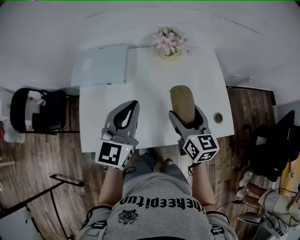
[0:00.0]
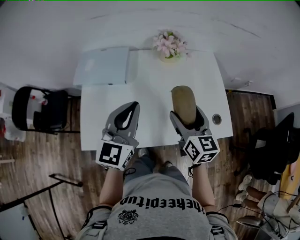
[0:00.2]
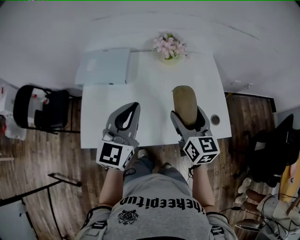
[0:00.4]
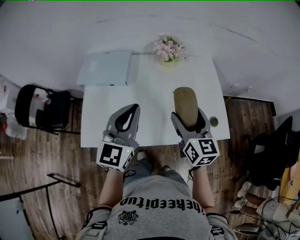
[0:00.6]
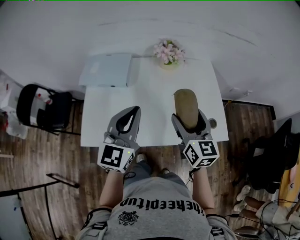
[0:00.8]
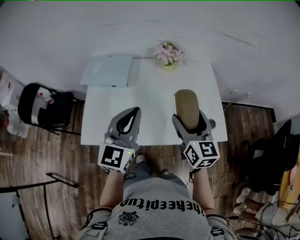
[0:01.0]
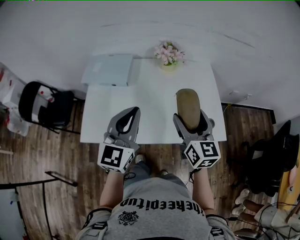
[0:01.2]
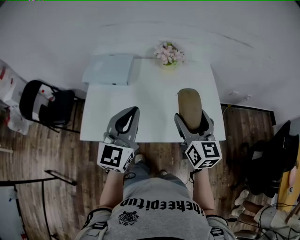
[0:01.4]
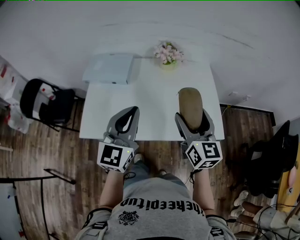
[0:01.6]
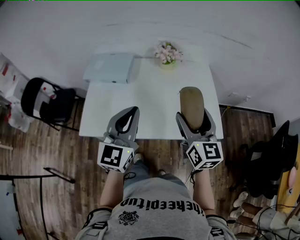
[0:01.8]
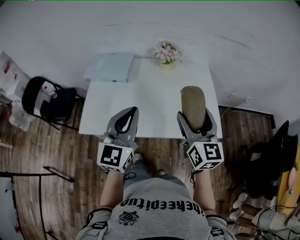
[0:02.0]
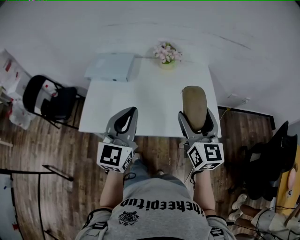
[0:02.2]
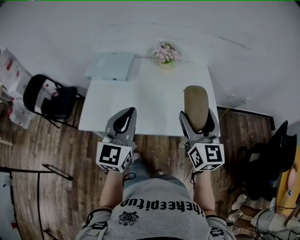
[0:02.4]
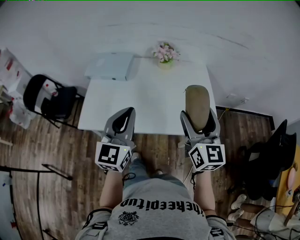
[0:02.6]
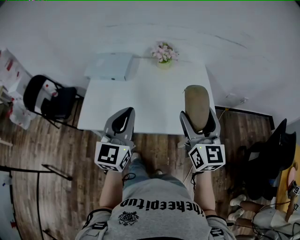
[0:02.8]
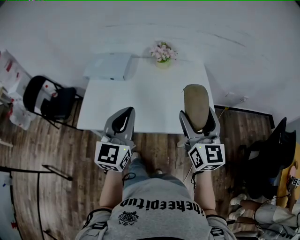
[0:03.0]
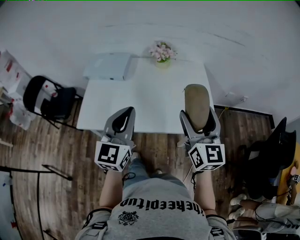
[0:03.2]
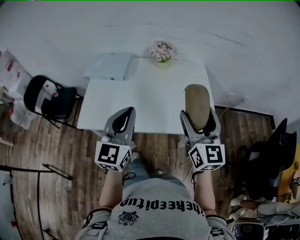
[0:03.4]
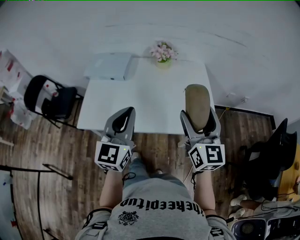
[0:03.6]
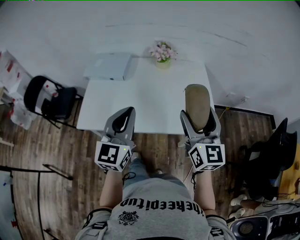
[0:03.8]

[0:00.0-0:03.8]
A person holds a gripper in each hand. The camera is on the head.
0:00.0 to 0:01.2: The left gripper travels backward by some 10 cm; the right gripper goes approximately 10 cm upward and backward.
0:01.2 to 0:02.6: The right gripper travels backward, to the right and upward by about 10 cm; the left gripper travels backward by roughly 10 cm.
0:02.6 to 0:03.8: The grippers stay close to where they were, moving slightly.

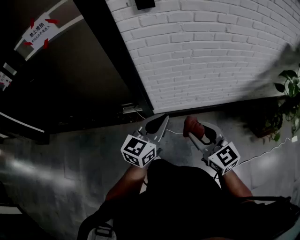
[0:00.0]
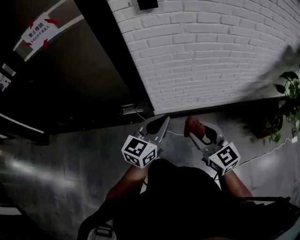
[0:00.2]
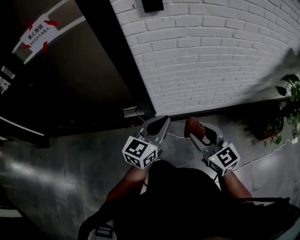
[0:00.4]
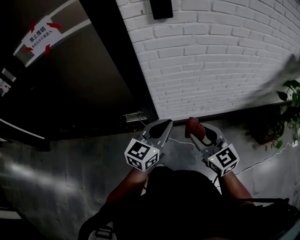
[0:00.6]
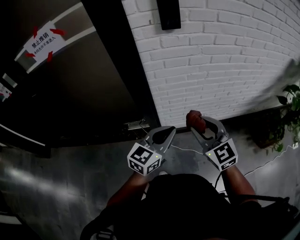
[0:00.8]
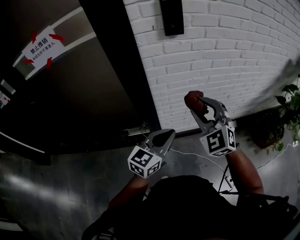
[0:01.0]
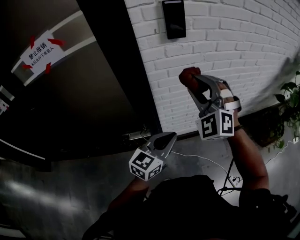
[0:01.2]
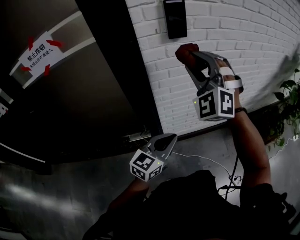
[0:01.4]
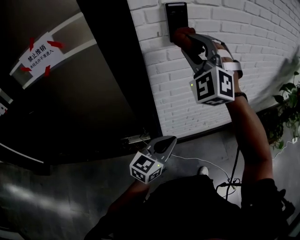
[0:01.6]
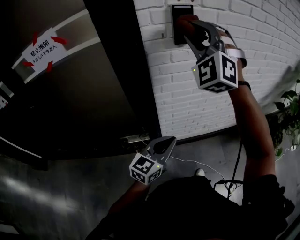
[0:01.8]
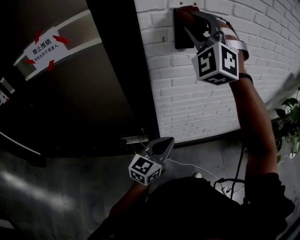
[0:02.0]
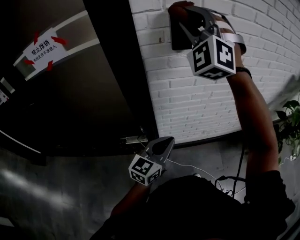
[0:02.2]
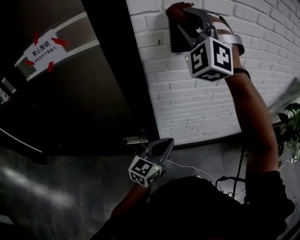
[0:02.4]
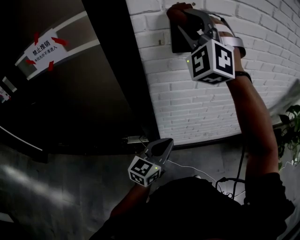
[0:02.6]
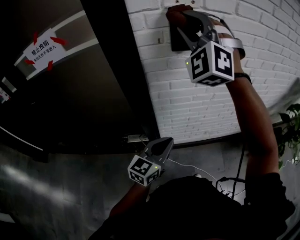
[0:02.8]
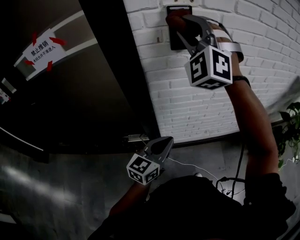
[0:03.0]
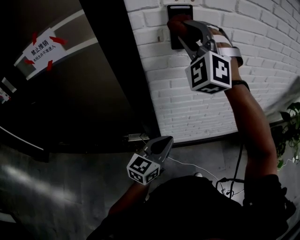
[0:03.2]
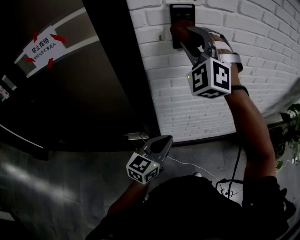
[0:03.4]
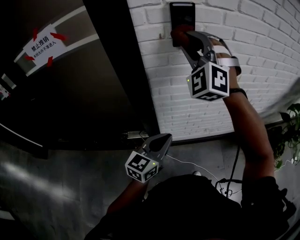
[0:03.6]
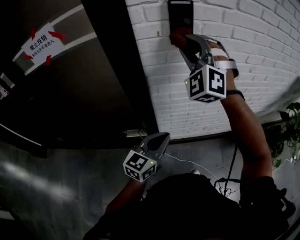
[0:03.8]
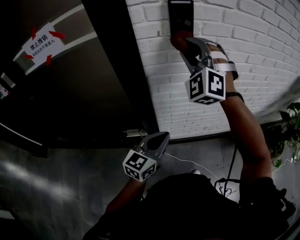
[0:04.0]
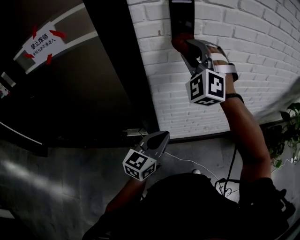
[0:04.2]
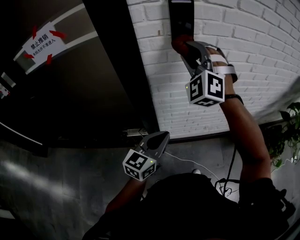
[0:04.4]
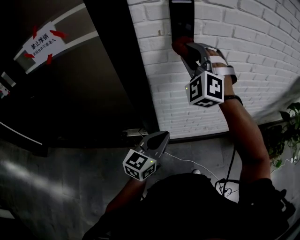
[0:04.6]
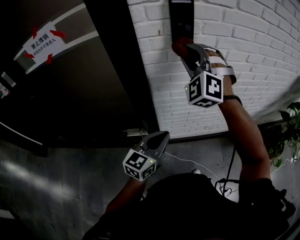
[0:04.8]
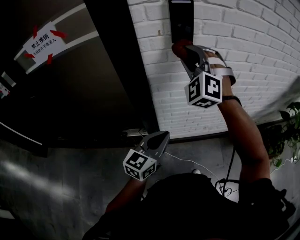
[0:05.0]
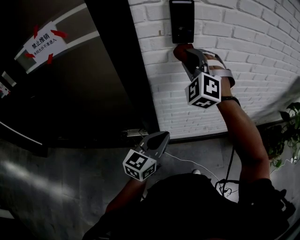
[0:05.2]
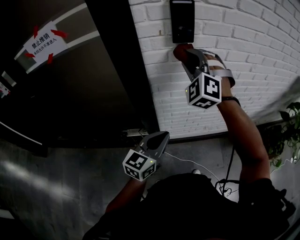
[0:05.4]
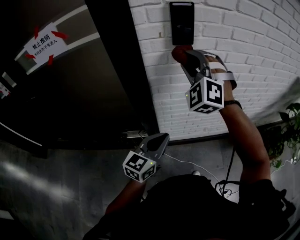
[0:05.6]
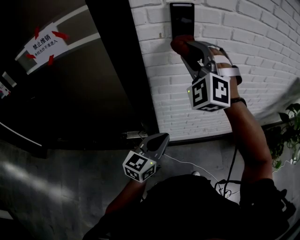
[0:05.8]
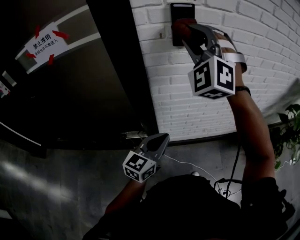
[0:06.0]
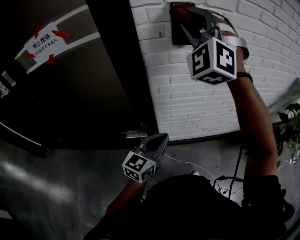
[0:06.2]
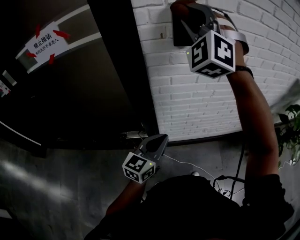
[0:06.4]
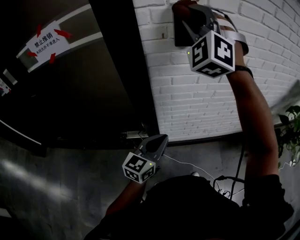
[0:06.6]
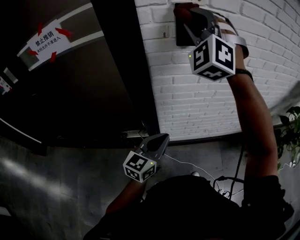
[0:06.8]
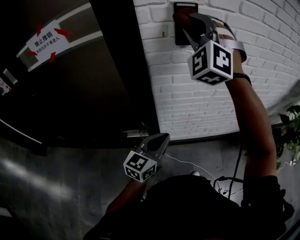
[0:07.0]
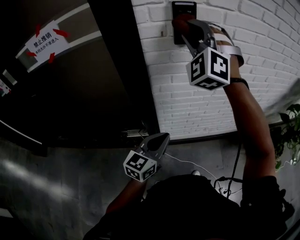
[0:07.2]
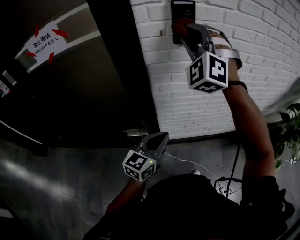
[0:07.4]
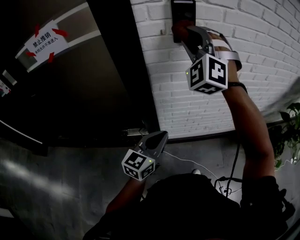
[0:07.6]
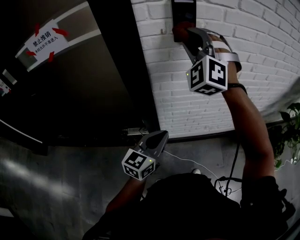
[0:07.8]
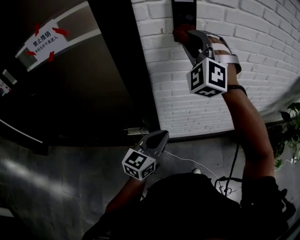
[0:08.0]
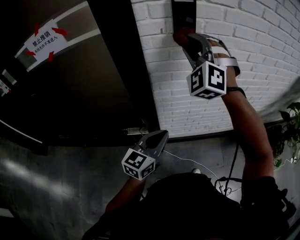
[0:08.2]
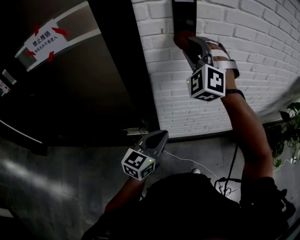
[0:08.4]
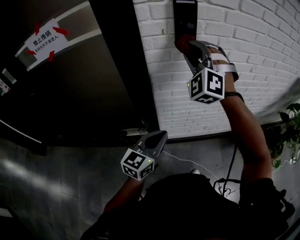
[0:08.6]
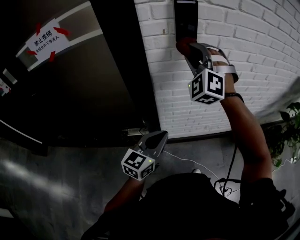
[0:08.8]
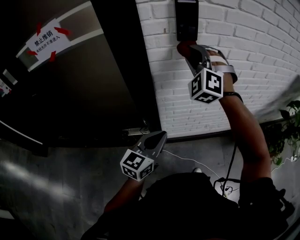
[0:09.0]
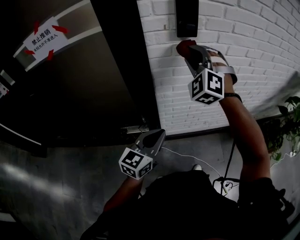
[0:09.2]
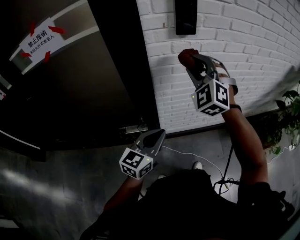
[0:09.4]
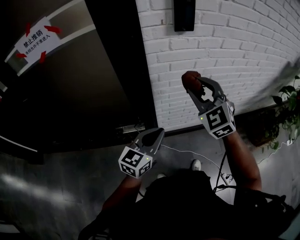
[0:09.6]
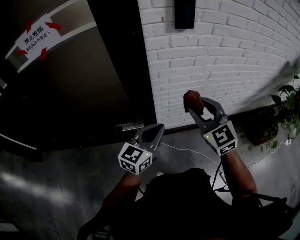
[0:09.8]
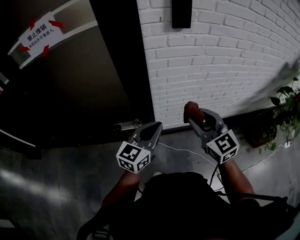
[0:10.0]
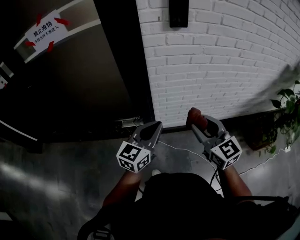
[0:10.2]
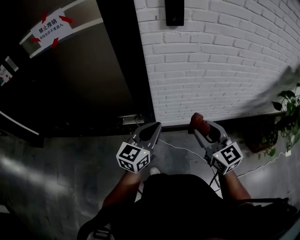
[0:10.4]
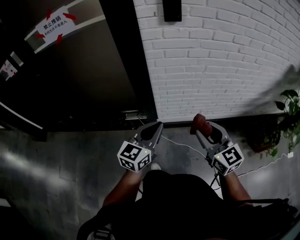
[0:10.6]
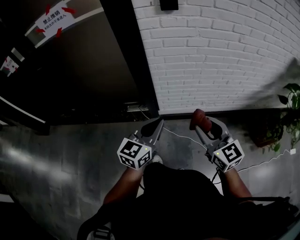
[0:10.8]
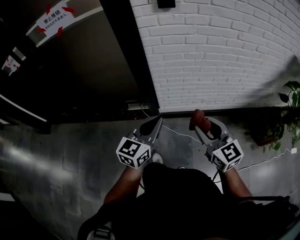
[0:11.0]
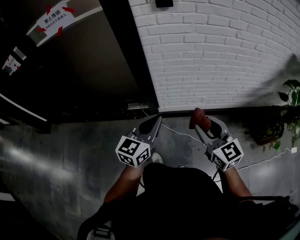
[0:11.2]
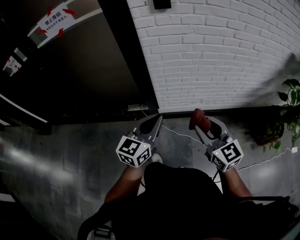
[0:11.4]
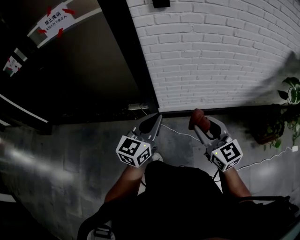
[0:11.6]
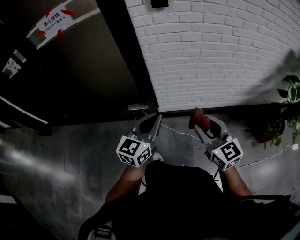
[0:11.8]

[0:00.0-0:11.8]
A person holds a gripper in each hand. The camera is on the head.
0:00.0 to 0:01.4: The right gripper moves forward, upward and to the left, approximately 40 cm, and rolls counterclockwise, seen from behind, by approximately 70 degrees. Meanwhile the left gripper is displaced to the left and forward by some 15 cm.
0:01.4 to 0:03.0: The left gripper goes approximately 5 cm forward; the right gripper shifts about 15 cm forward and upward.
0:03.0 to 0:04.4: The right gripper goes some 10 cm downward.
0:04.4 to 0:06.0: The right gripper goes roughly 10 cm upward.
0:06.0 to 0:07.4: The right gripper moves approximately 5 cm upward and comes back.
0:07.4 to 0:08.8: The right gripper is displaced downward by about 10 cm.
0:08.8 to 0:10.4: The left gripper goes about 10 cm backward. Meanwhile the right gripper heads backward, downward and to the right, covering about 35 cm, and twists some 70 degrees clockwise, seen from behind.
0:10.4 to 0:11.8: Both grippers travel together backward, some 10 cm.

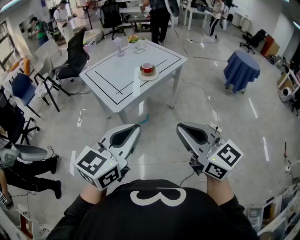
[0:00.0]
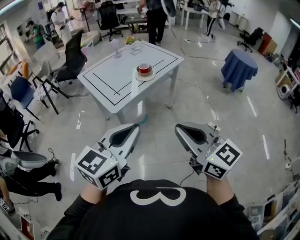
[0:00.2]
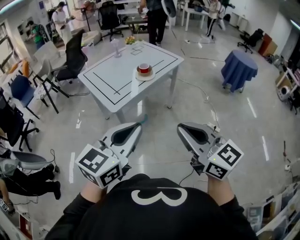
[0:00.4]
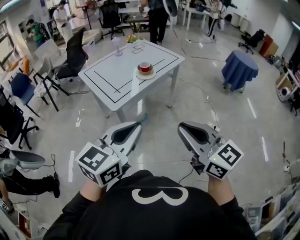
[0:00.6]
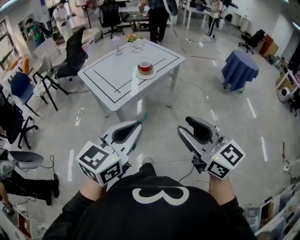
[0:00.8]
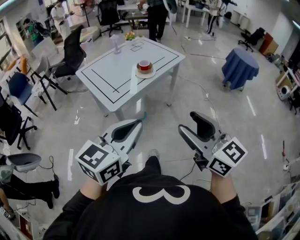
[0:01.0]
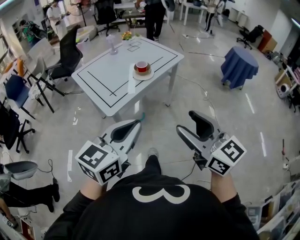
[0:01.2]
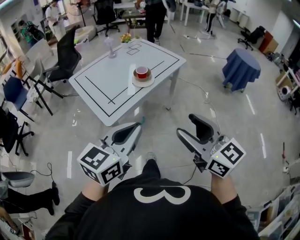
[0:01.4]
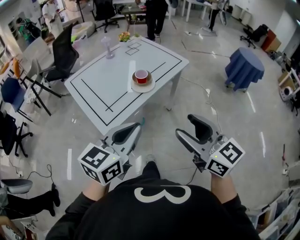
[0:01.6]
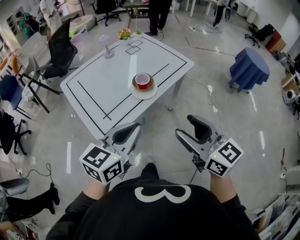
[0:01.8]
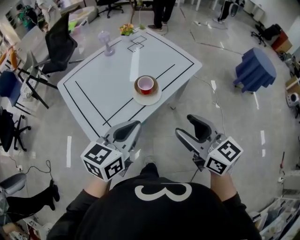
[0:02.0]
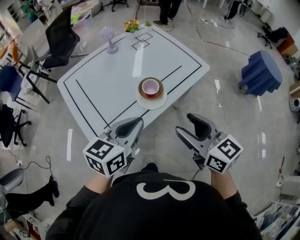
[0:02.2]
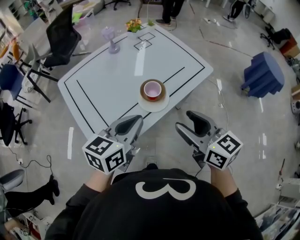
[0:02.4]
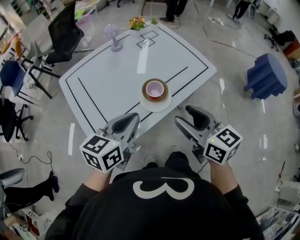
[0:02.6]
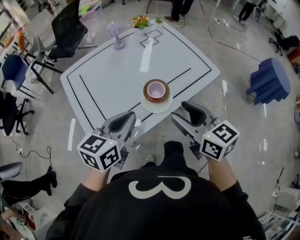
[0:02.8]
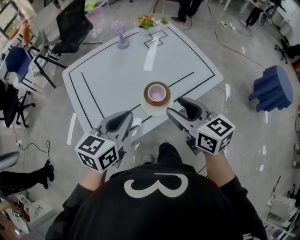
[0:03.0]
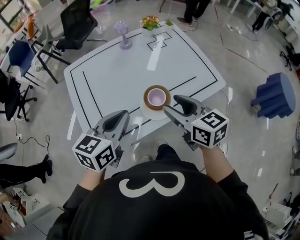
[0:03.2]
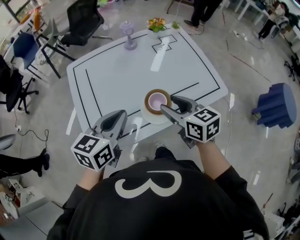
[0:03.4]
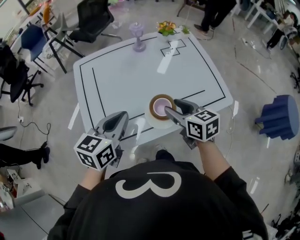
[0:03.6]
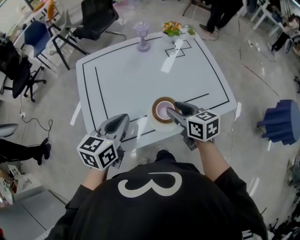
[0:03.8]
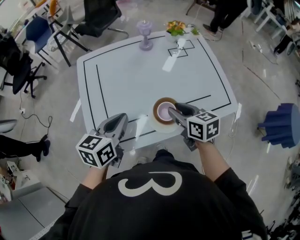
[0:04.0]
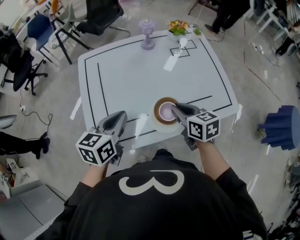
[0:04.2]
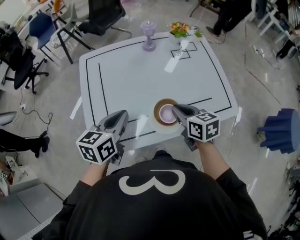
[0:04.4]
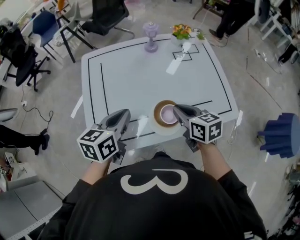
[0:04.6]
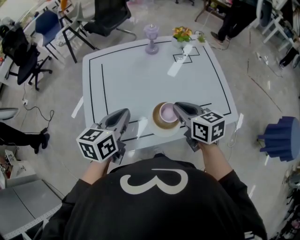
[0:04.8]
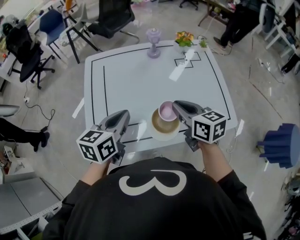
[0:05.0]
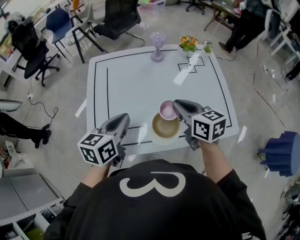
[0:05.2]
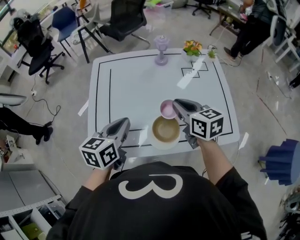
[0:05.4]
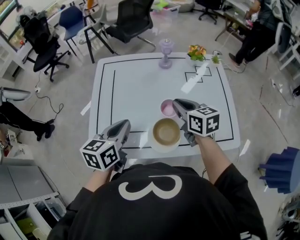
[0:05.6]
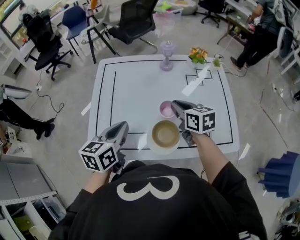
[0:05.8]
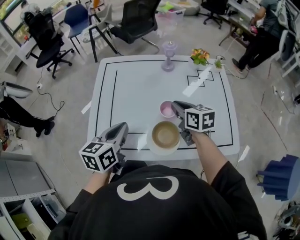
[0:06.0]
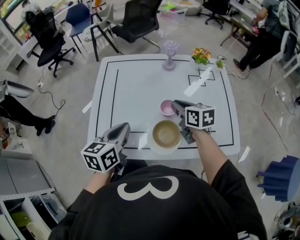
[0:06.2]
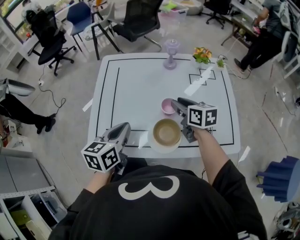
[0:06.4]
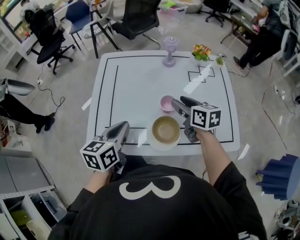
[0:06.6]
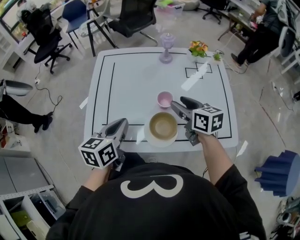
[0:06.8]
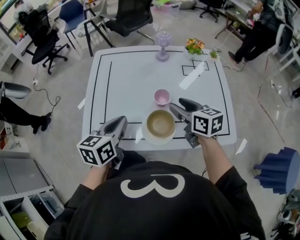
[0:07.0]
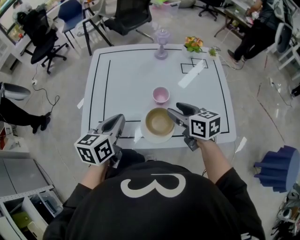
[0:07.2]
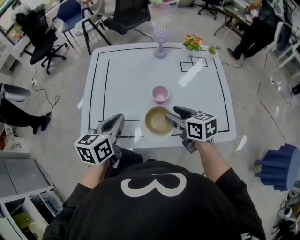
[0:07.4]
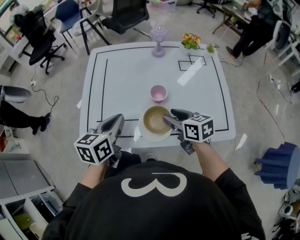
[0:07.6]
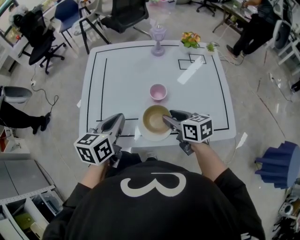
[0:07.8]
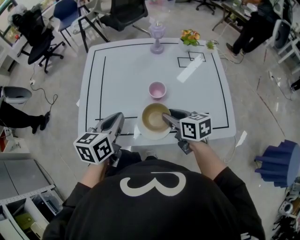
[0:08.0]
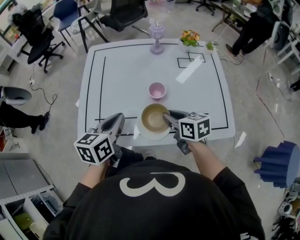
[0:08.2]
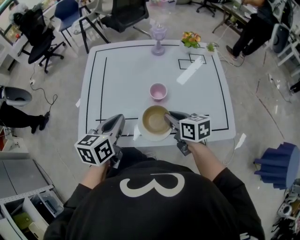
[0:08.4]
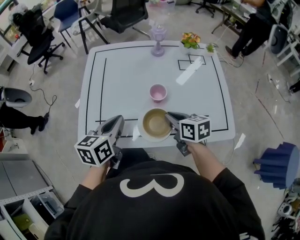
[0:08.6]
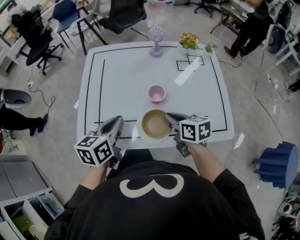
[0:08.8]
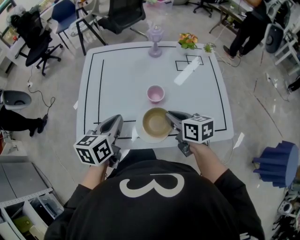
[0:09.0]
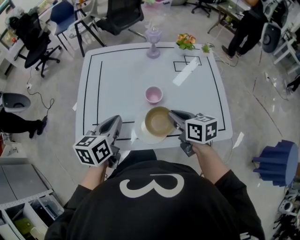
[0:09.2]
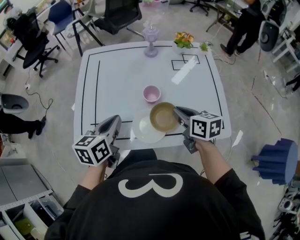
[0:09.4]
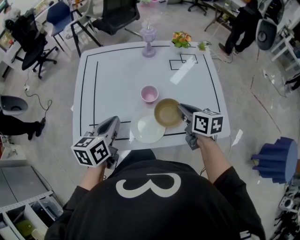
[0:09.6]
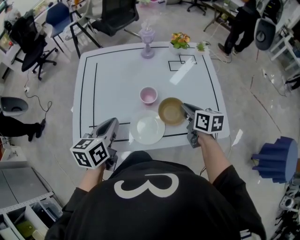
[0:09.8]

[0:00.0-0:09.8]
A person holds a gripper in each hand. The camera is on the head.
0:00.0 to 0:01.4: Both grippers move forward, some 10 cm. The right gripper opens its fingers.
0:01.4 to 0:02.8: The two grippers go roughly 35 cm forward. The right gripper changes its angle by approximately 20 degrees, while the left gripper swivels some 20 degrees.
0:02.8 to 0:04.2: The left gripper travels forward by some 10 cm, and turns by roughly 30 degrees, while the right gripper is displaced forward and downward by approximately 20 cm, changes its angle by roughly 20 degrees, and closes its fingers.
0:04.2 to 0:05.6: The right gripper moves forward, some 10 cm.
0:05.6 to 0:07.0: The right gripper opens.
0:07.0 to 0:08.4: The right gripper moves downward, approximately 5 cm, and closes its fingers.
0:08.4 to 0:09.8: The right gripper moves to the right, approximately 10 cm.
